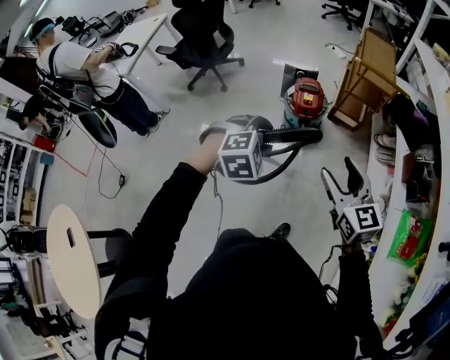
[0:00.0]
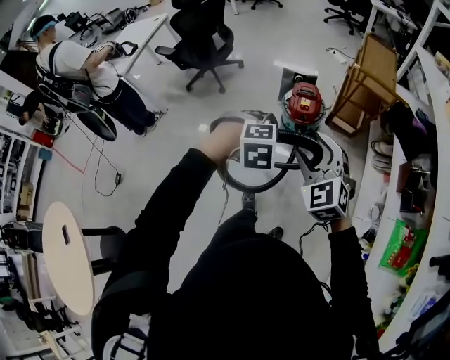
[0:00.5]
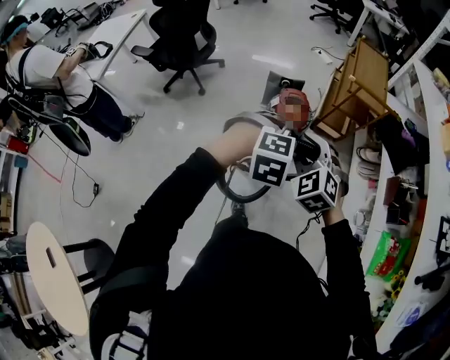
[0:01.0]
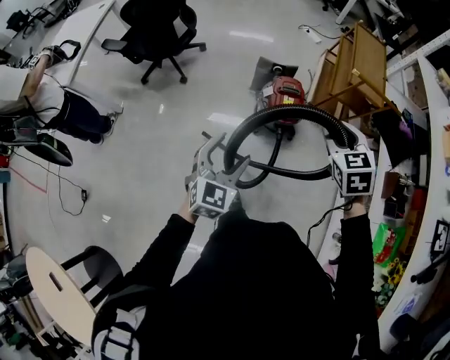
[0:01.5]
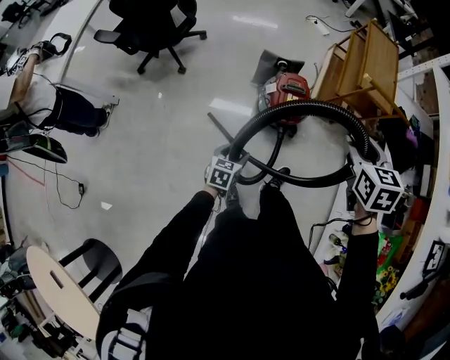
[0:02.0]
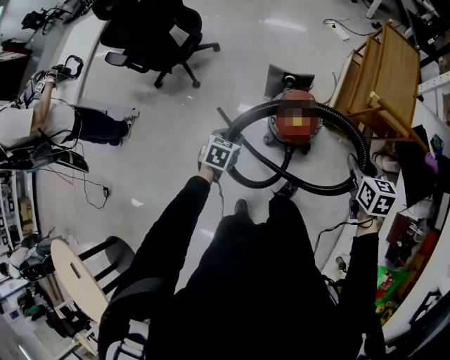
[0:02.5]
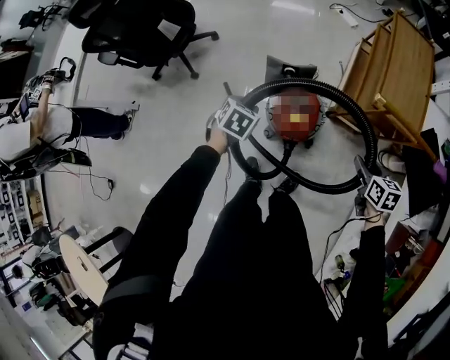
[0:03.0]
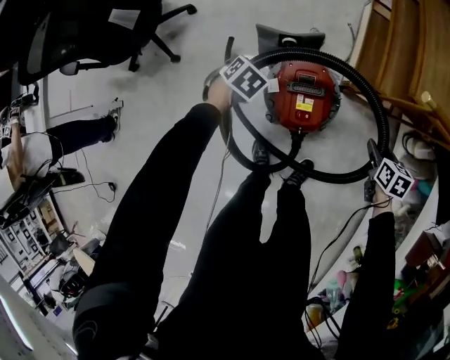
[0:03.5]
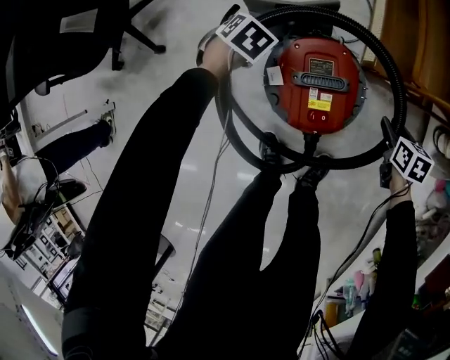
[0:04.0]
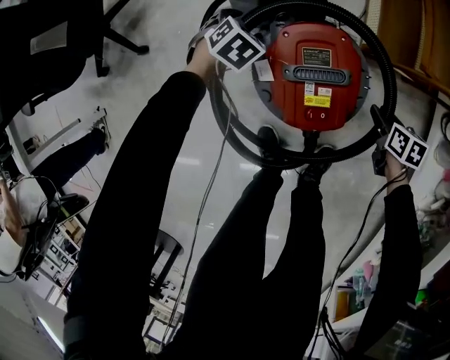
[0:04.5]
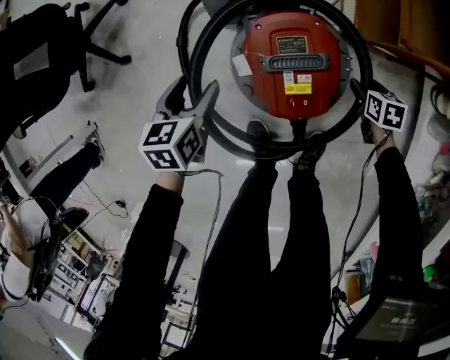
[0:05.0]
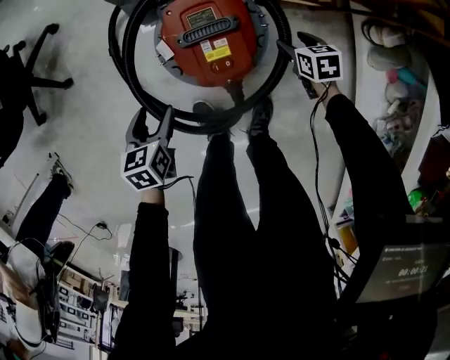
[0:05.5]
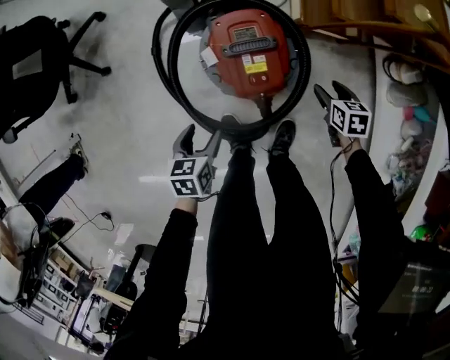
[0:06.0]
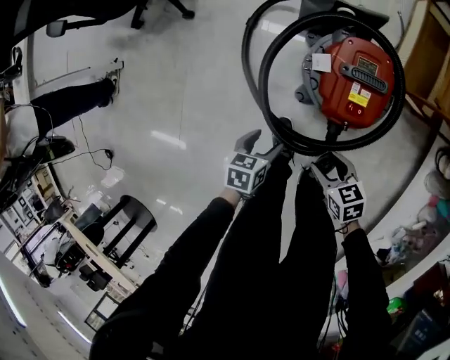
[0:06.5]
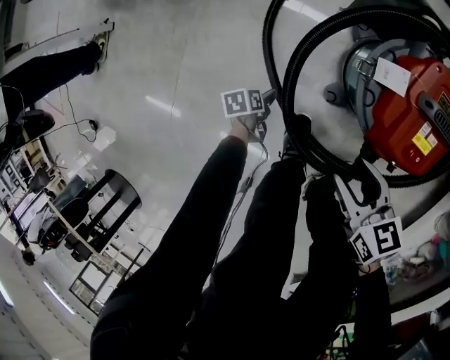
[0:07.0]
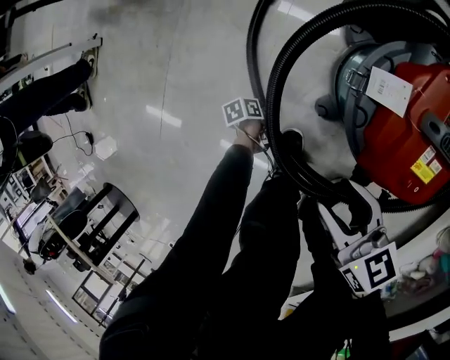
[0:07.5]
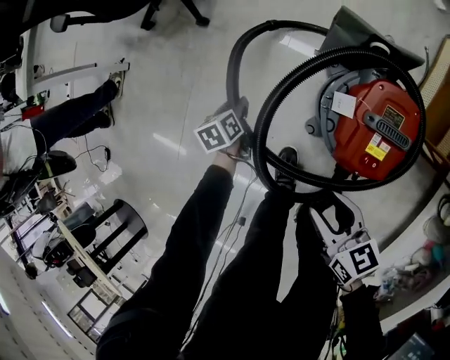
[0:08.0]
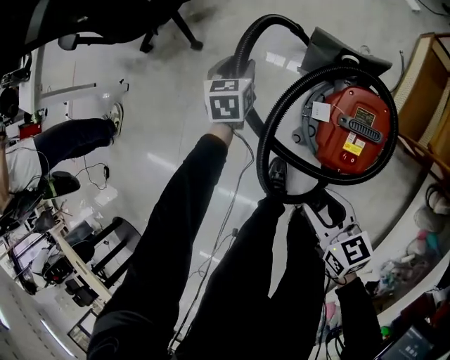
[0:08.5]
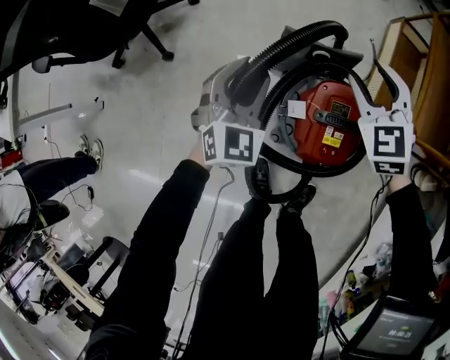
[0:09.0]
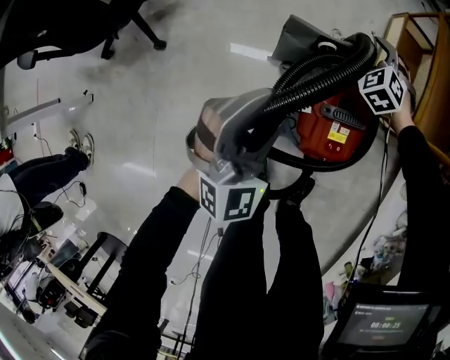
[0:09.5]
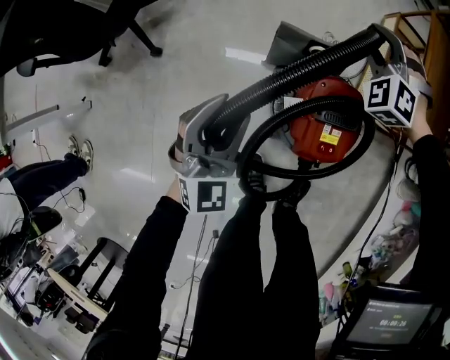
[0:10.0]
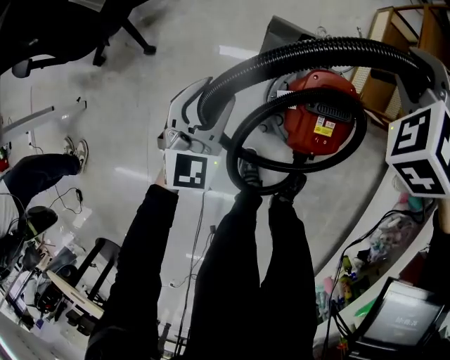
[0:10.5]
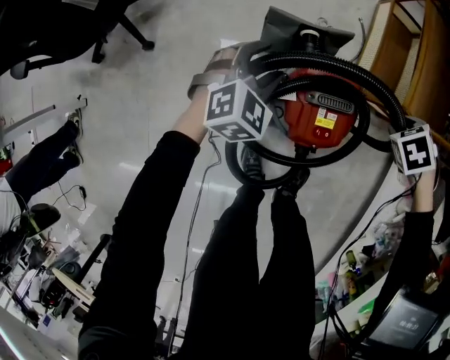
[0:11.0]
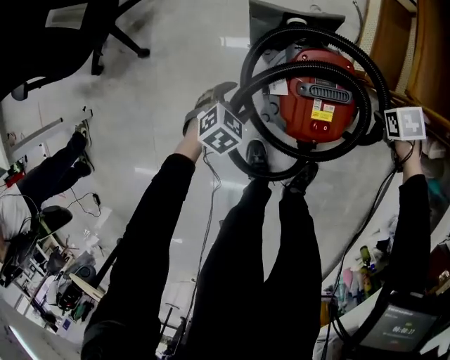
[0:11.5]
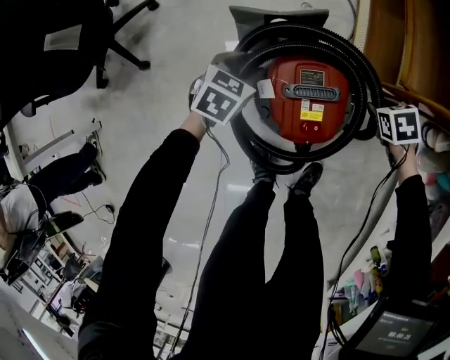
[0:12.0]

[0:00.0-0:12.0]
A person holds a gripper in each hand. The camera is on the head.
0:00.0 to 0:02.0: The right gripper moves forward, about 40 cm, swivels roughly 40 degrees, and closes up. Meanwhile the left gripper travels downward, forward and to the left by about 40 cm, and rolls counterclockwise, seen from behind, by about 70 degrees.
0:02.0 to 0:04.0: The left gripper moves some 60 cm, angles its fingers downward, by about 30 degrees, and closes its fingers. Meanwhile the right gripper travels downward by some 60 cm, and swivels about 40 degrees.
0:04.0 to 0:06.0: The right gripper reaches approximately 10 cm downward, then returns, and opens its fingers. The left gripper moves roughly 30 cm, swivels some 40 degrees, and opens up.
0:06.0 to 0:08.0: The right gripper swings up and down, some 10 cm each way, with 2 reversals, and tips its fingers upward by about 30 degrees, while the left gripper goes downward and returns, about 40 cm each way, and turns by roughly 50 degrees.
0:08.0 to 0:10.0: The right gripper moves up and down over roughly 15 cm, changing direction 2 times, and twists some 80 degrees counterclockwise, seen from behind, while the left gripper travels upward by approximately 30 cm, and twists some 70 degrees clockwise, seen from behind.
0:10.0 to 0:12.0: The right gripper moves about 35 cm, and twists roughly 70 degrees clockwise, seen from behind, while the left gripper moves downward, about 20 cm, tips its fingers downward by about 40 degrees, and opens, then closes again.

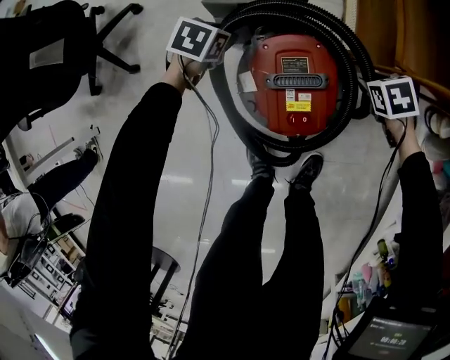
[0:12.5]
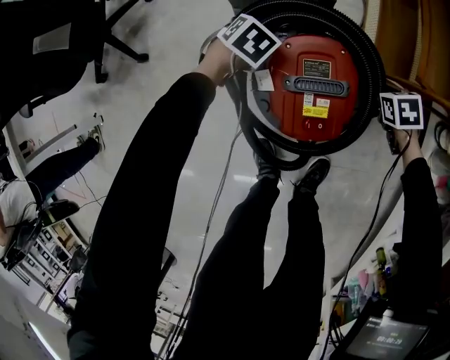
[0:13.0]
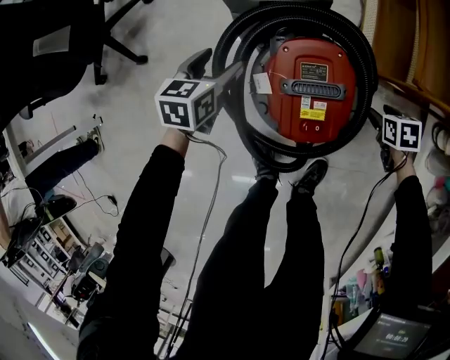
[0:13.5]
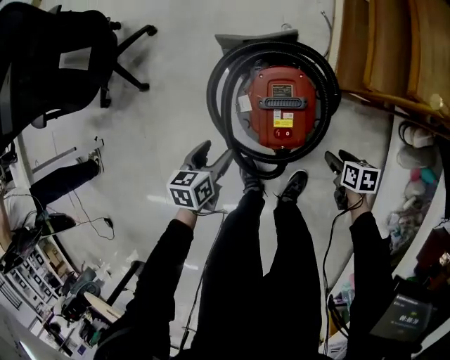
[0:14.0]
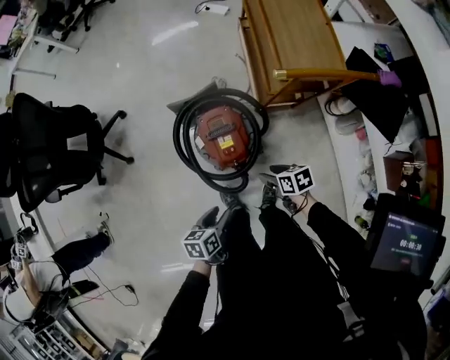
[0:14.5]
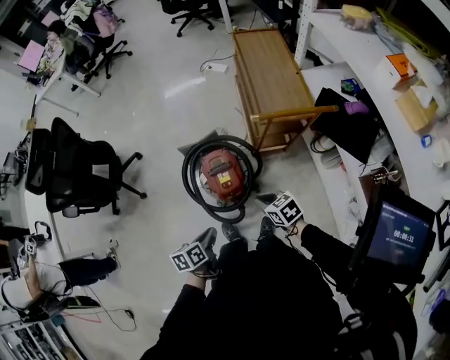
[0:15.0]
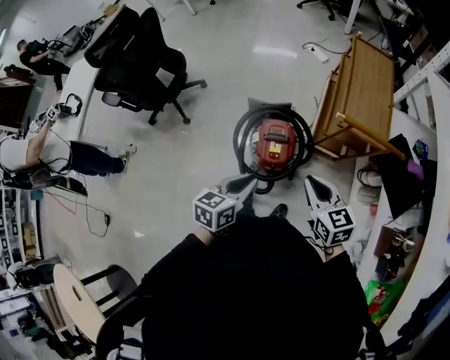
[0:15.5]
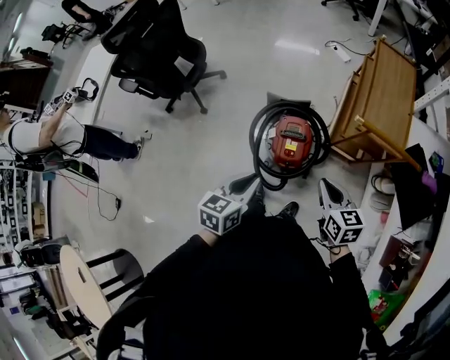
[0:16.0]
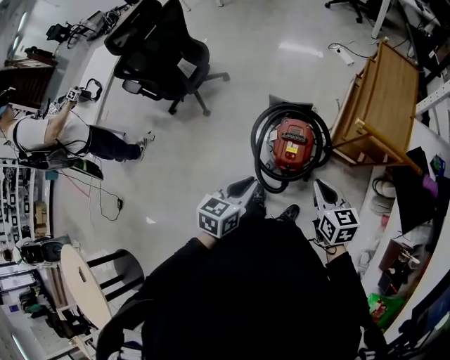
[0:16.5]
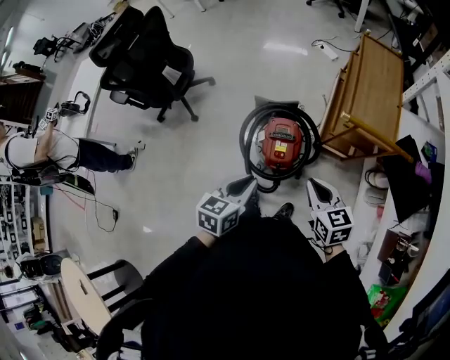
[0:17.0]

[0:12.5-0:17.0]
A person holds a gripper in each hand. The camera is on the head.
0:12.5 to 0:14.5: The left gripper ends up about 50 cm from where it was, and changes its angle by some 40 degrees, while the right gripper ends up roughly 35 cm from where it was, and rotates roughly 40 degrees.
0:14.5 to 0:17.0: The two grippers go approximately 25 cm upward. The right gripper changes its angle by approximately 40 degrees, and closes; the left gripper swivels roughly 30 degrees, and closes its fingers.

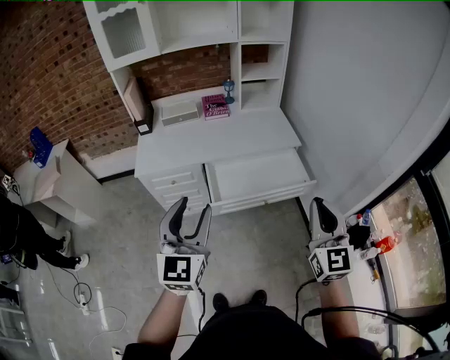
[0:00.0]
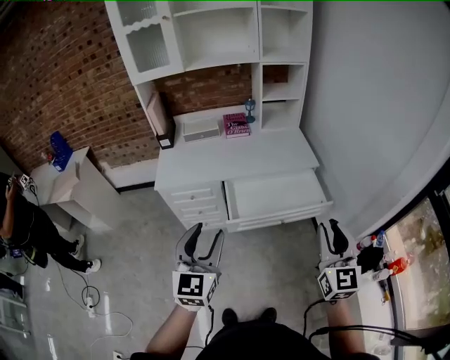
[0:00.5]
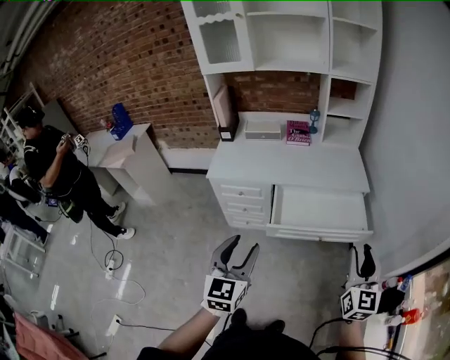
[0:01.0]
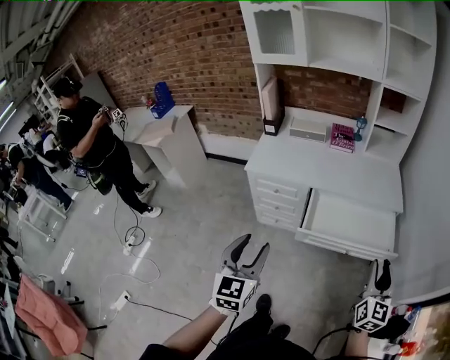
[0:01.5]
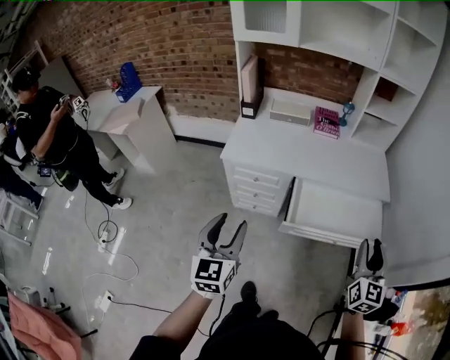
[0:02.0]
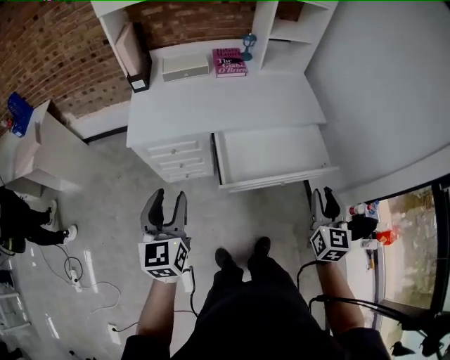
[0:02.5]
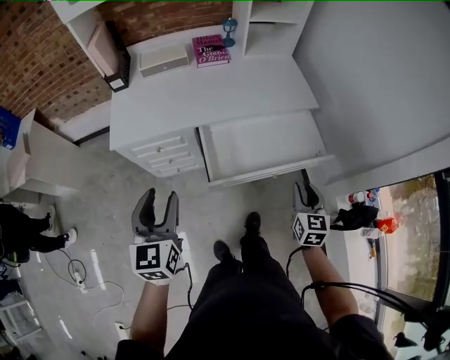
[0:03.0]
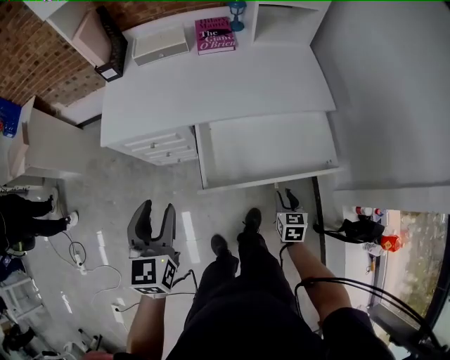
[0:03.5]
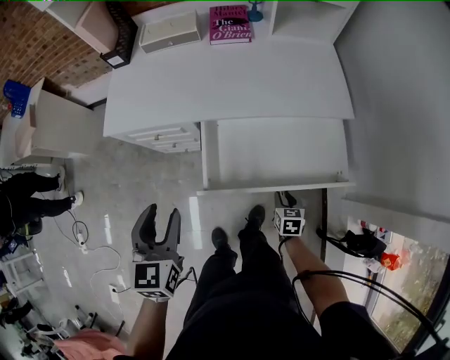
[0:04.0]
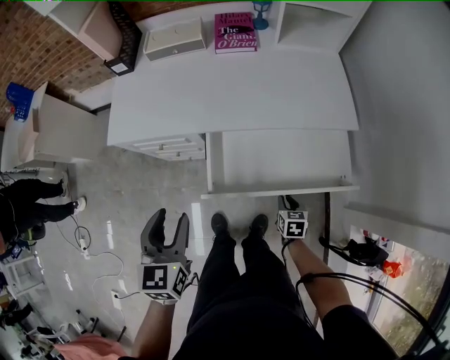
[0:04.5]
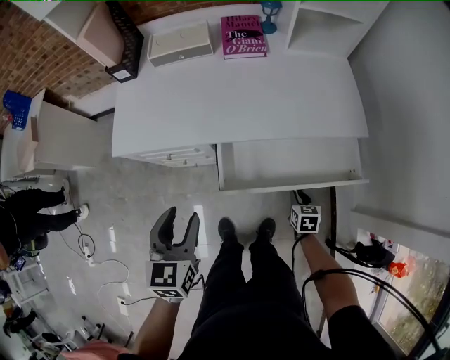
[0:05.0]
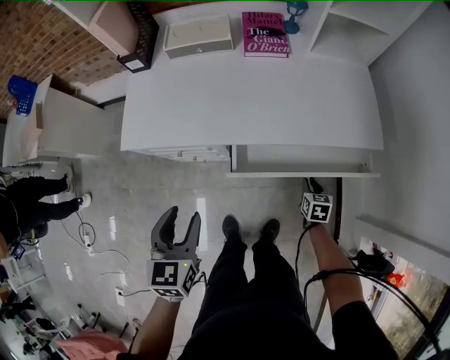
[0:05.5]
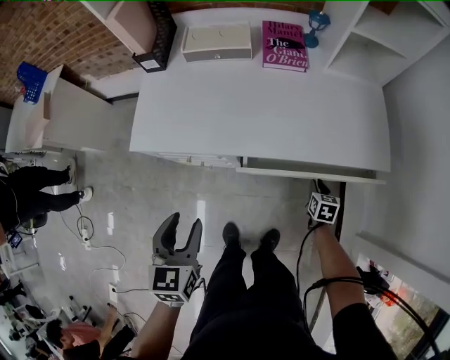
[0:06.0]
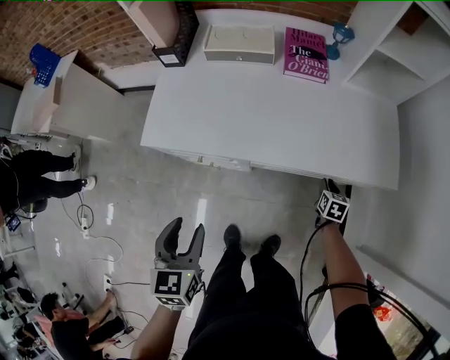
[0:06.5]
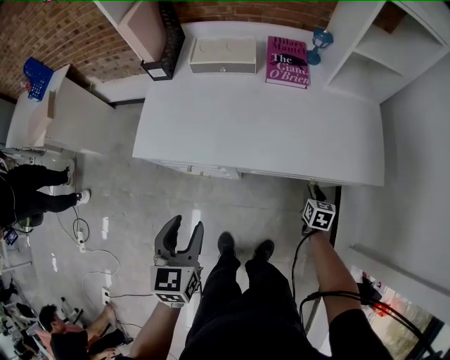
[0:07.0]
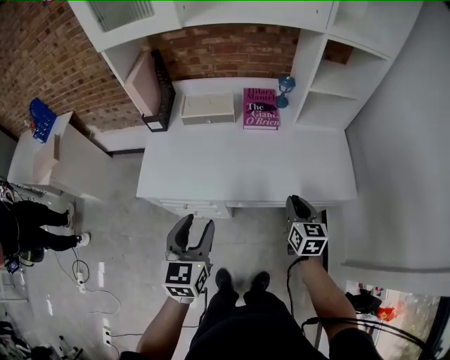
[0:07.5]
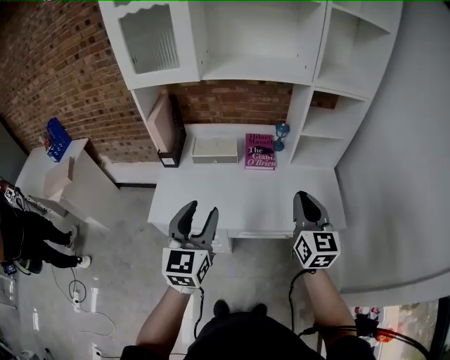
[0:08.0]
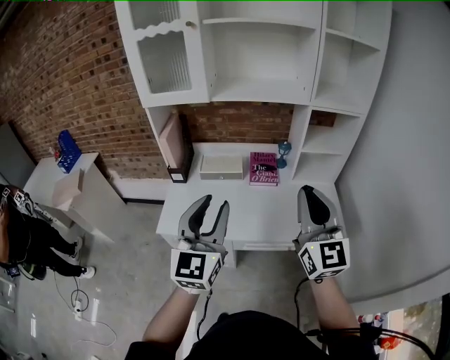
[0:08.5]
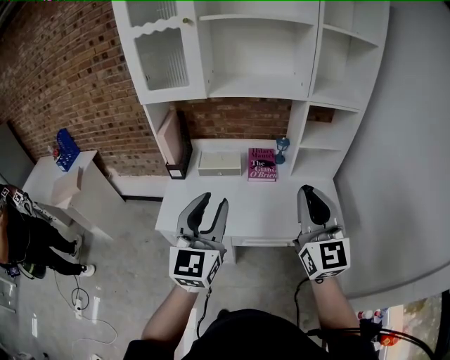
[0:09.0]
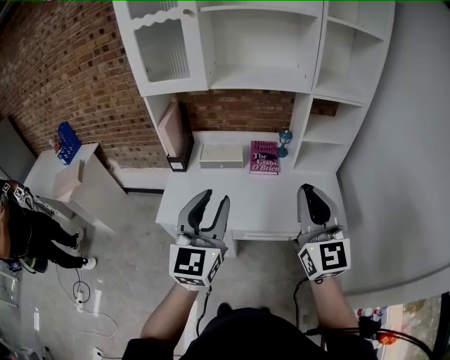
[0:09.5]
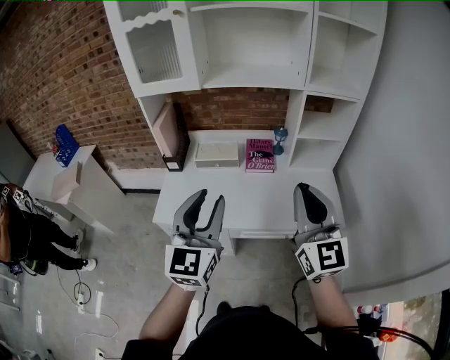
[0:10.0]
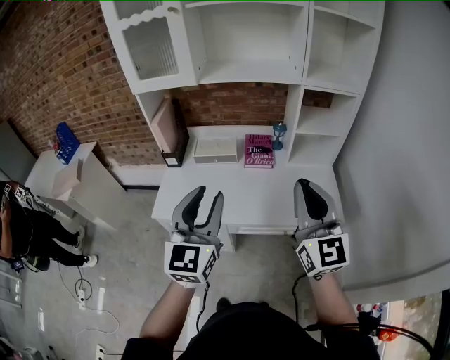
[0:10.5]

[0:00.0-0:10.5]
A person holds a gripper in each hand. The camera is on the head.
0:00.0 to 0:02.0: The right gripper travels forward, downward and to the left by roughly 15 cm, and opens up, while the left gripper travels to the left and downward by about 20 cm, and swivels roughly 30 degrees.
0:02.0 to 0:04.0: The left gripper heads forward, to the right and downward, covering approximately 25 cm, and swivels about 20 degrees. The right gripper goes some 50 cm downward, and angles its fingers downward, by approximately 50 degrees.
0:04.0 to 0:06.5: The right gripper heads forward, covering roughly 25 cm. The left gripper moves to the left, forward and downward, approximately 15 cm.
0:06.5 to 0:08.5: The right gripper shifts about 70 cm upward, and points its fingers about 70 degrees further upward, while the left gripper moves upward, approximately 35 cm, and points its fingers approximately 40 degrees further upward.
0:08.5 to 0:10.5: The grippers make only small movements.
